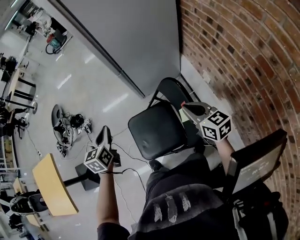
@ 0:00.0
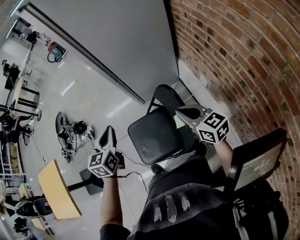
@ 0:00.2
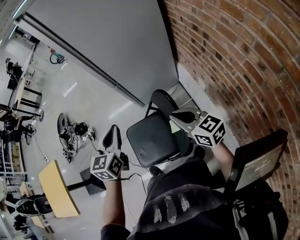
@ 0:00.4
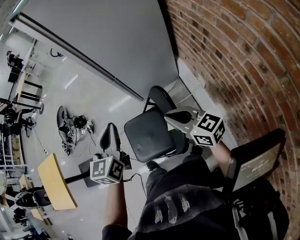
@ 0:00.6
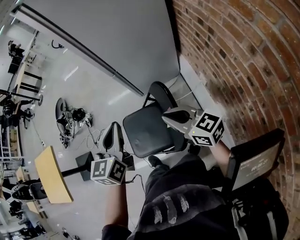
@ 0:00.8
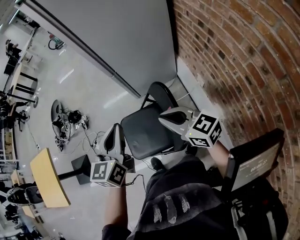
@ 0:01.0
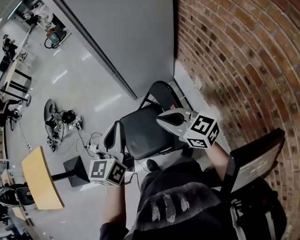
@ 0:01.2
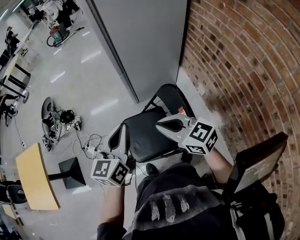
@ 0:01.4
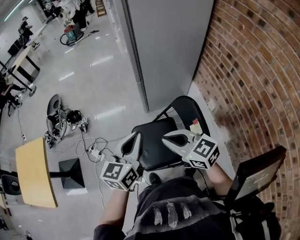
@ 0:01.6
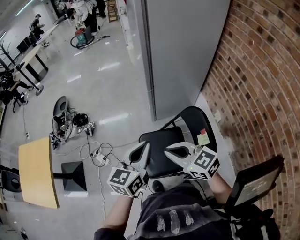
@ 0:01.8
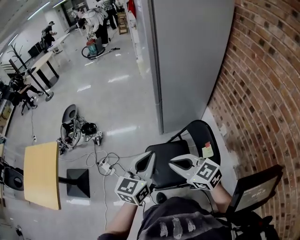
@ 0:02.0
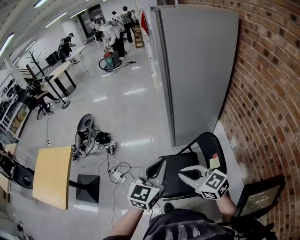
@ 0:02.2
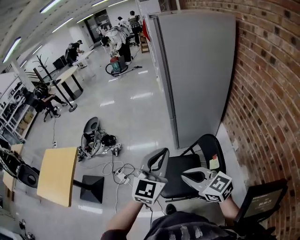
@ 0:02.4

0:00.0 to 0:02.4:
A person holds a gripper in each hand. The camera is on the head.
0:00.0 to 0:01.2: The right gripper heads upward and to the left, covering about 10 cm, and swivels some 20 degrees. The left gripper heads to the right, upward and backward, covering approximately 20 cm, and changes its angle by roughly 20 degrees.
0:01.2 to 0:02.4: The left gripper travels upward and to the left by about 10 cm, and rotates approximately 30 degrees. Meanwhile the right gripper is displaced to the left and backward by some 15 cm.

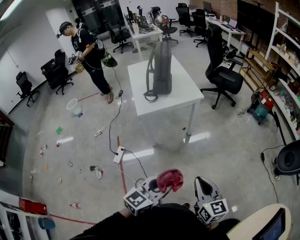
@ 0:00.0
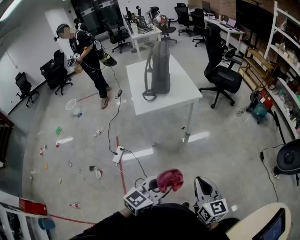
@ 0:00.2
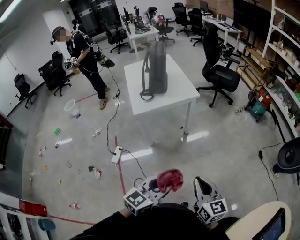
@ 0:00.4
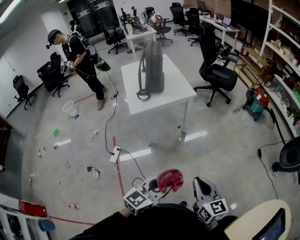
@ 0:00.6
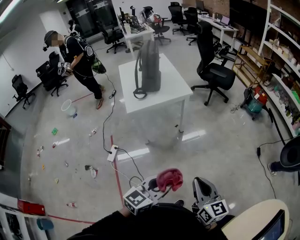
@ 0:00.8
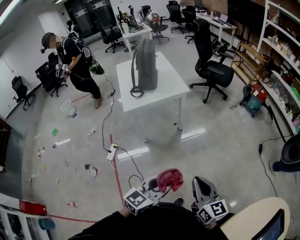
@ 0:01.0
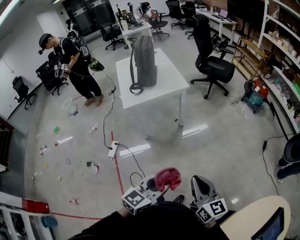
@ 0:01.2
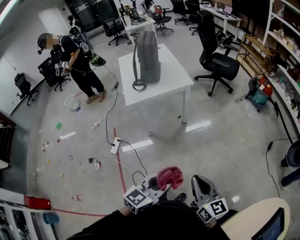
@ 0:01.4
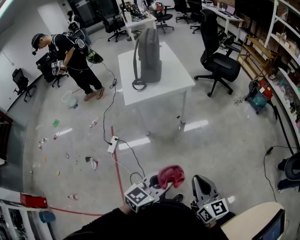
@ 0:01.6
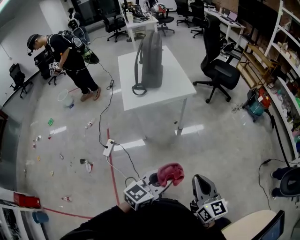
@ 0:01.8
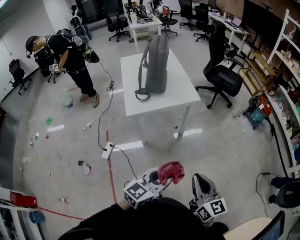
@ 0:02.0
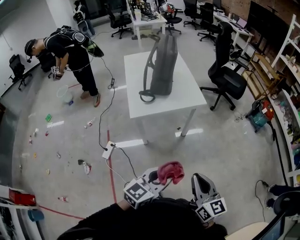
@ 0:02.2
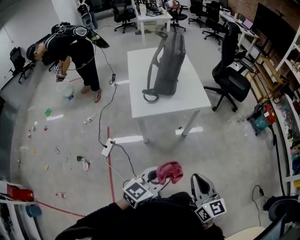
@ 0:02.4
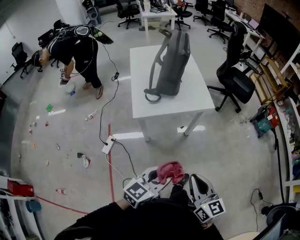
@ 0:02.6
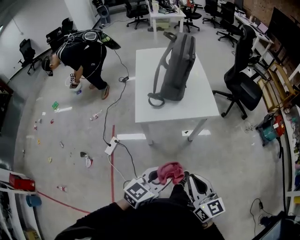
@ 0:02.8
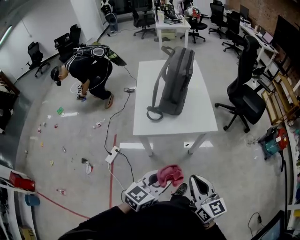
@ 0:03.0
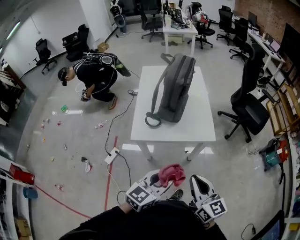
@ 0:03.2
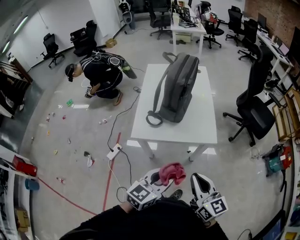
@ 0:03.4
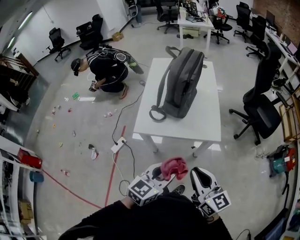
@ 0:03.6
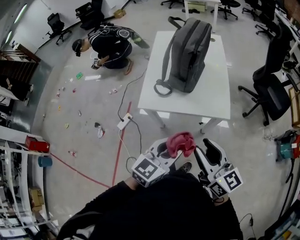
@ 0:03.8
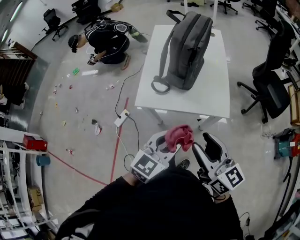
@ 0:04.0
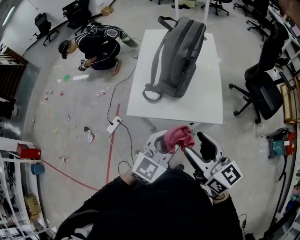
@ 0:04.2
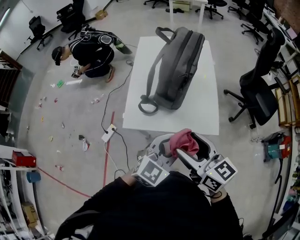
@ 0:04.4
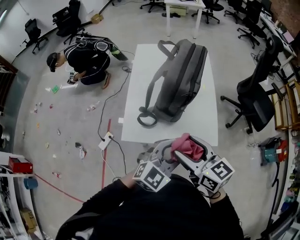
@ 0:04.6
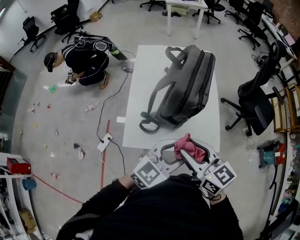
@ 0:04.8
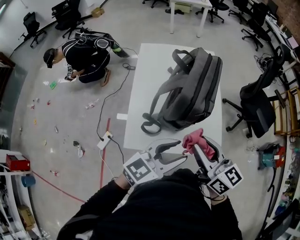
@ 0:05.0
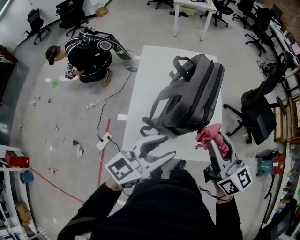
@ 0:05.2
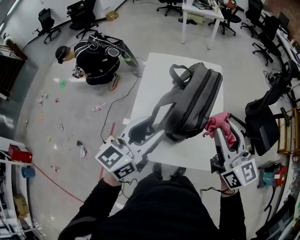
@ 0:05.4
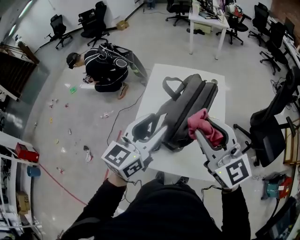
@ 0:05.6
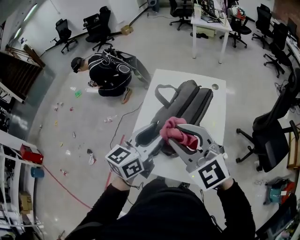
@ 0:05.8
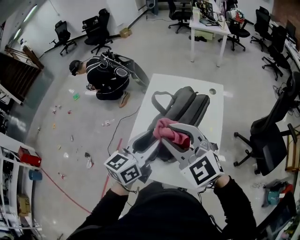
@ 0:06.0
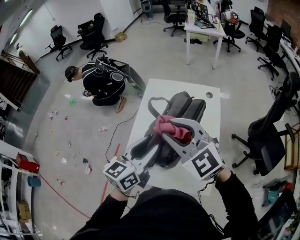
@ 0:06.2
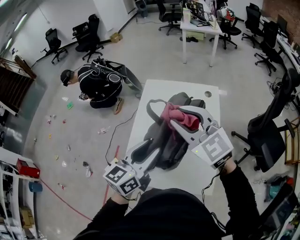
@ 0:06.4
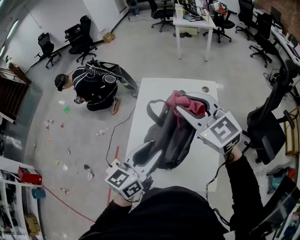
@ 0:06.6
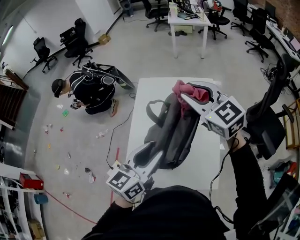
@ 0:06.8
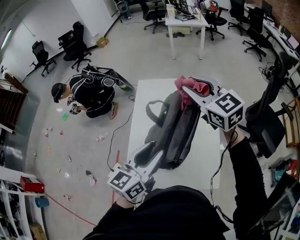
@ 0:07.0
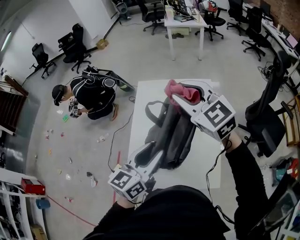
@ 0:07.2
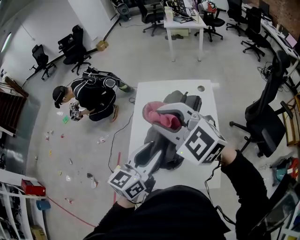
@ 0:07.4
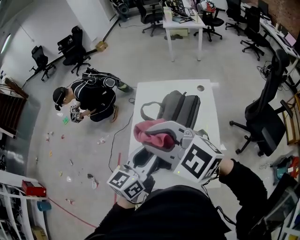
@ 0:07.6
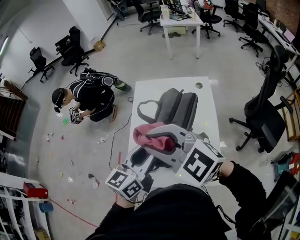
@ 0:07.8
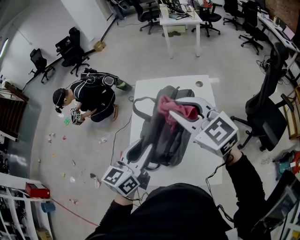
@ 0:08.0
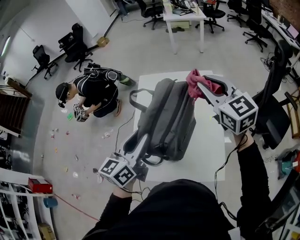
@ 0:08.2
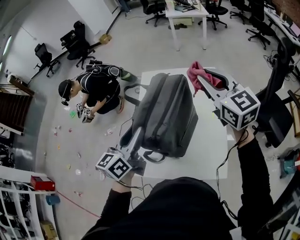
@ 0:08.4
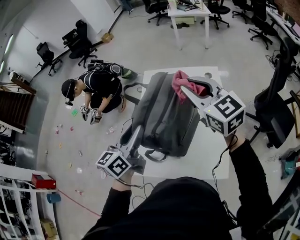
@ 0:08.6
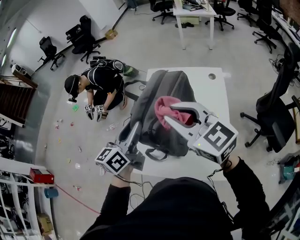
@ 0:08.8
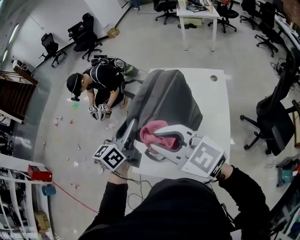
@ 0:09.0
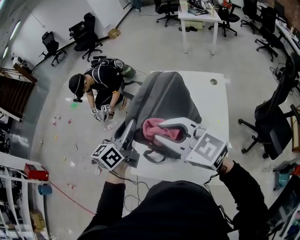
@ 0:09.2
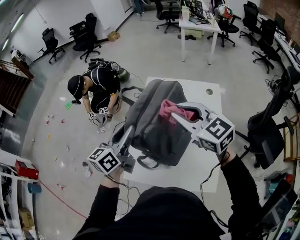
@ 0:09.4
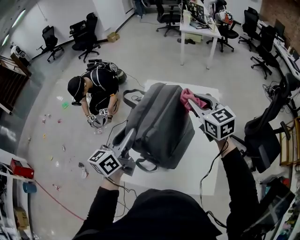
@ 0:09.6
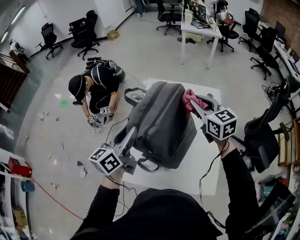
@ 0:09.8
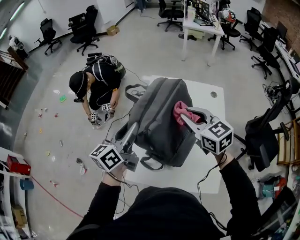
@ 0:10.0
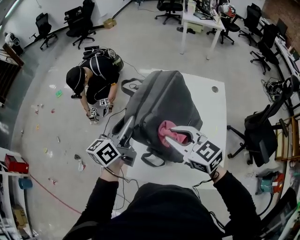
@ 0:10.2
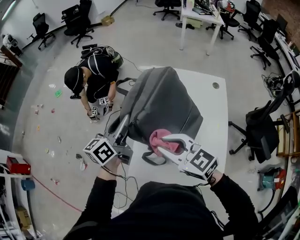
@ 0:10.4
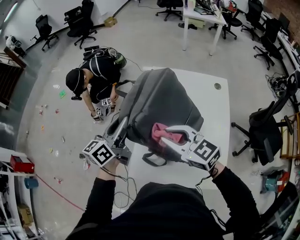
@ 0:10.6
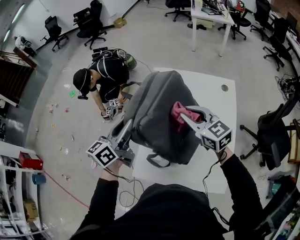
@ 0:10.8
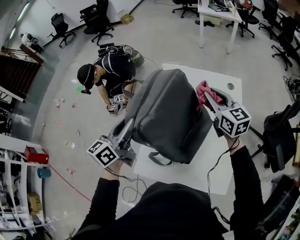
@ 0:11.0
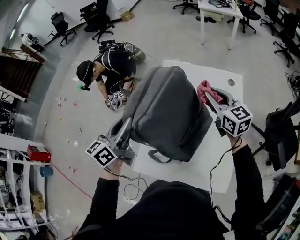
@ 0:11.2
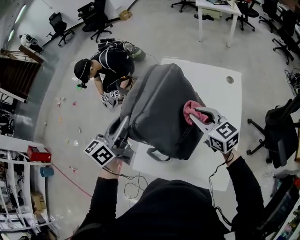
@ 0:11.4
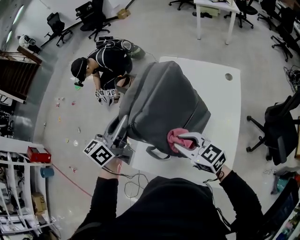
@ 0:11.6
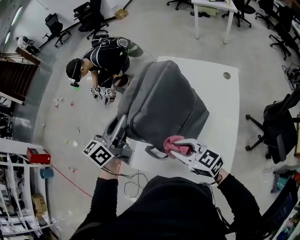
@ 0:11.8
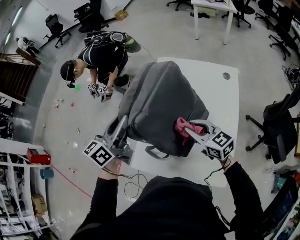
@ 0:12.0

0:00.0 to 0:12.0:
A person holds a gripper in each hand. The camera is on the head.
0:00.0 to 0:01.6: Both grippers travel together to the right, about 10 cm.
0:01.6 to 0:03.0: The two grippers go roughly 35 cm forward.
0:03.0 to 0:04.4: The grippers both shift forward by roughly 25 cm. The left gripper swivels approximately 30 degrees. Meanwhile the right gripper rotates some 20 degrees, and opens its fingers.
0:04.4 to 0:06.0: The right gripper shifts by some 30 cm, rolls counterclockwise, seen from behind, by roughly 50 degrees, and closes its fingers. Meanwhile the left gripper ends up some 30 cm from where it was, and rotates roughly 40 degrees.
0:06.0 to 0:07.6: The right gripper is displaced to the left by approximately 5 cm, and travels forward and back again, roughly 20 cm each way.
0:07.6 to 0:09.0: The left gripper moves to the left and forward, approximately 15 cm. Meanwhile the right gripper goes to the right and returns, about 20 cm each way.
0:09.0 to 0:10.4: The left gripper shifts approximately 15 cm to the left and forward; the right gripper is displaced downward and forward by some 10 cm, and goes to the right and returns, roughly 15 cm each way.
0:10.4 to 0:12.0: The left gripper heads to the right, covering roughly 5 cm, while the right gripper moves left and right over about 25 cm, changing direction 2 times.

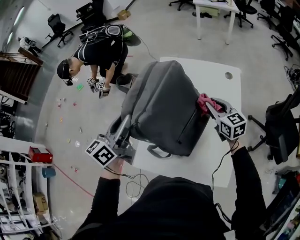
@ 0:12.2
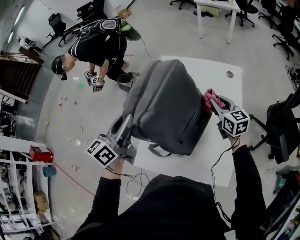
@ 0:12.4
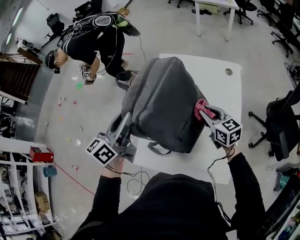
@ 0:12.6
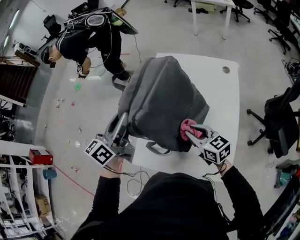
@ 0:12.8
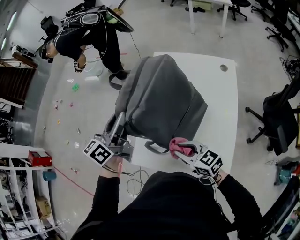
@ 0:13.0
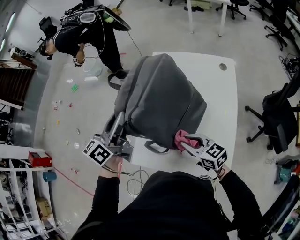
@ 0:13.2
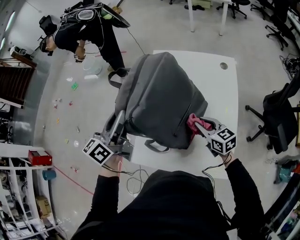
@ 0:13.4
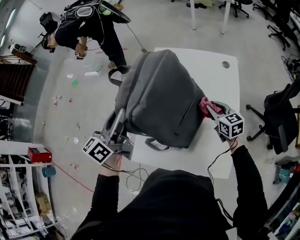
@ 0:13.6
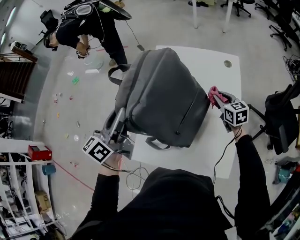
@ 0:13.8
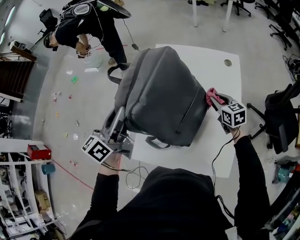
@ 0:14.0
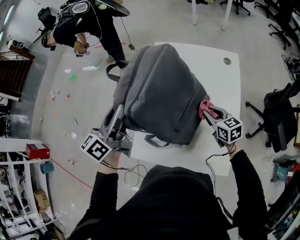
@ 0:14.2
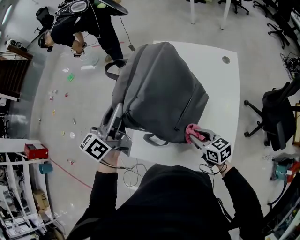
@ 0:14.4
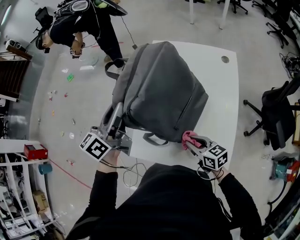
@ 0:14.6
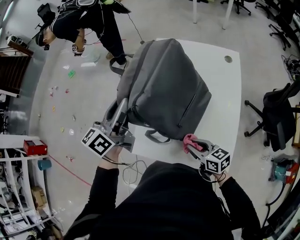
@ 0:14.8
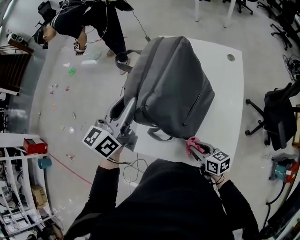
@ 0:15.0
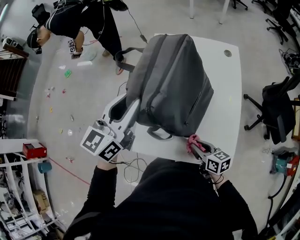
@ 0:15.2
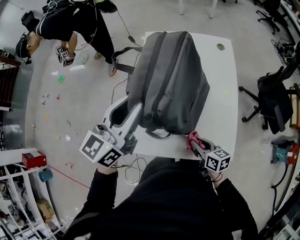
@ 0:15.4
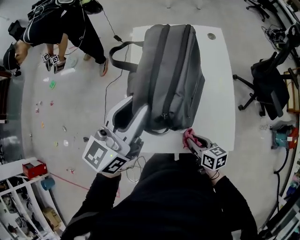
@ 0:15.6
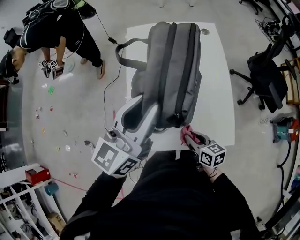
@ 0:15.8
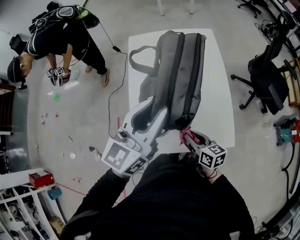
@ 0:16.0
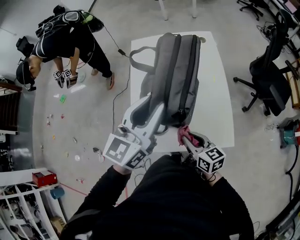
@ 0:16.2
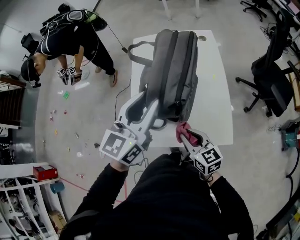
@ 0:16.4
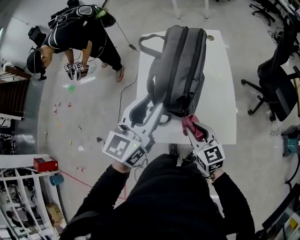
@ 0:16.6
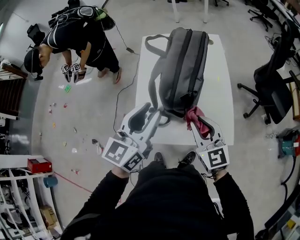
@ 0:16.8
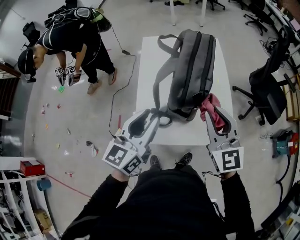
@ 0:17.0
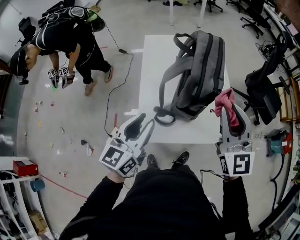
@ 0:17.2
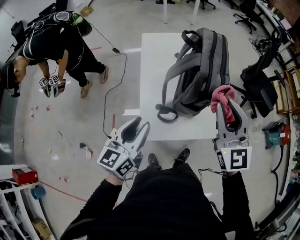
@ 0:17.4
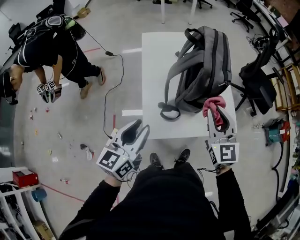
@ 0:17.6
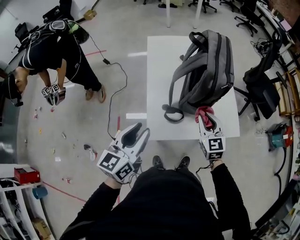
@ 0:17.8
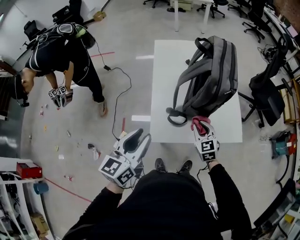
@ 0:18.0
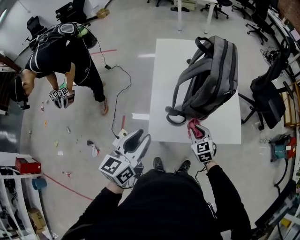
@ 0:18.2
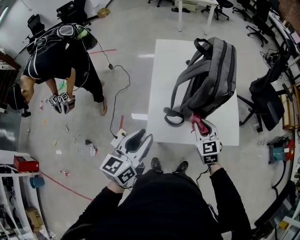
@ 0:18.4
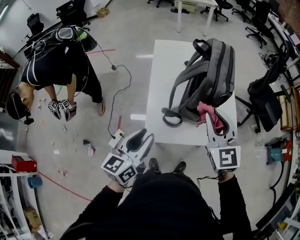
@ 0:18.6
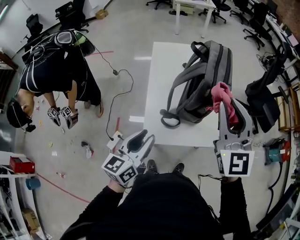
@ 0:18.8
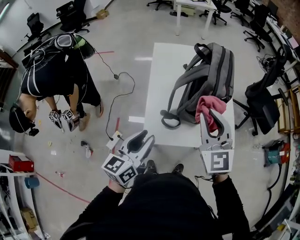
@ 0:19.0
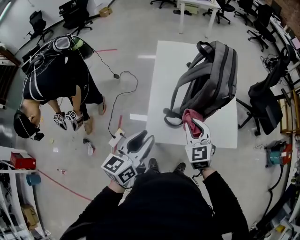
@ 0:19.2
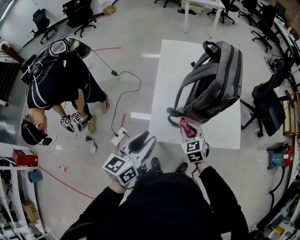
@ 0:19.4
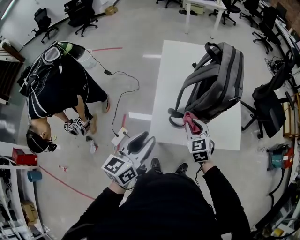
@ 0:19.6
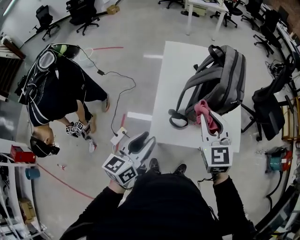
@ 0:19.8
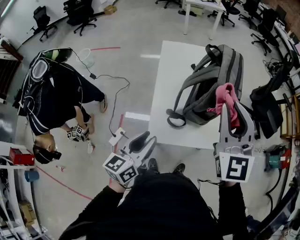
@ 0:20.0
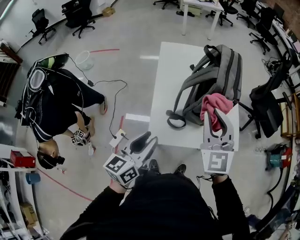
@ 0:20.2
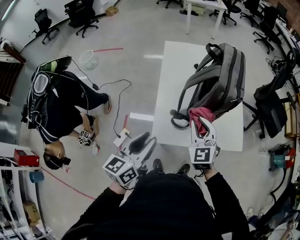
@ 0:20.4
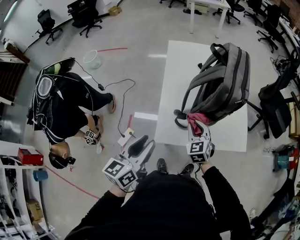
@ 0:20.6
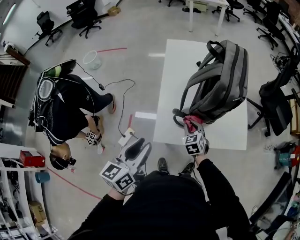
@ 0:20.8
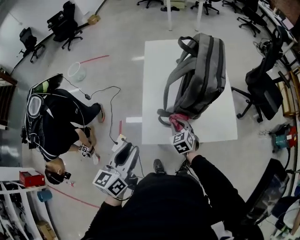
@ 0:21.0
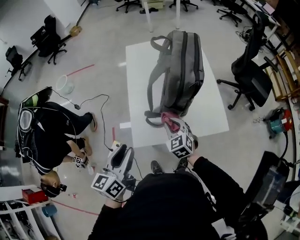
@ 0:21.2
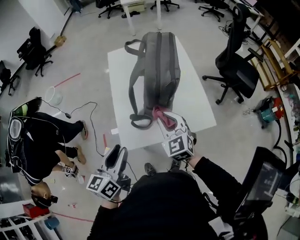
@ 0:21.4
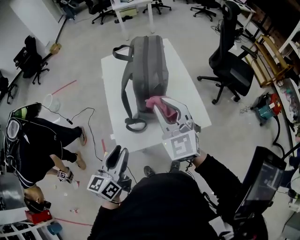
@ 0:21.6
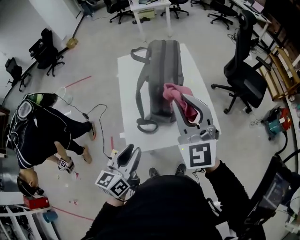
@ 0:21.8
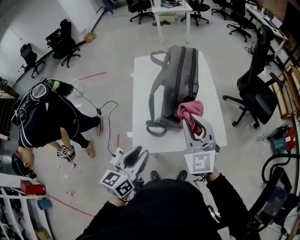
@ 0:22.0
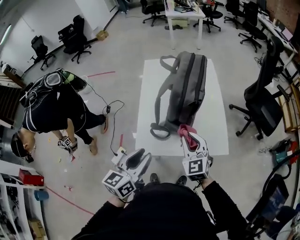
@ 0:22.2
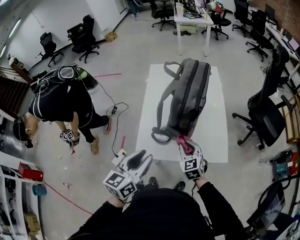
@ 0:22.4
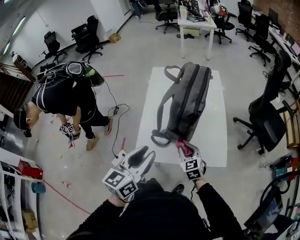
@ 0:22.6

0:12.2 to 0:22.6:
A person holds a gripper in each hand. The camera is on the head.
0:12.2 to 0:13.6: The right gripper goes roughly 5 cm downward, and travels backward and back again, roughly 20 cm each way.
0:13.6 to 0:15.2: The left gripper rotates some 30 degrees. The right gripper travels backward and to the left by about 25 cm, and turns by about 30 degrees.
0:15.2 to 0:16.6: The right gripper goes roughly 10 cm upward and backward, and changes its angle by about 40 degrees. The left gripper travels to the right and backward by some 20 cm.
0:16.6 to 0:18.2: The left gripper heads to the left and backward, covering about 25 cm, while the right gripper is displaced to the left by roughly 10 cm, travels upward and back again, approximately 20 cm each way, and rotates some 30 degrees.
0:18.2 to 0:19.6: The right gripper goes up and down, roughly 35 cm each way, reversing 2 times.
0:19.6 to 0:21.2: The right gripper goes up and down, roughly 40 cm each way, reversing 2 times.
0:21.2 to 0:22.6: The right gripper shifts roughly 10 cm to the right, and travels upward and back again, some 30 cm each way; the left gripper moves to the right and upward, about 15 cm.
